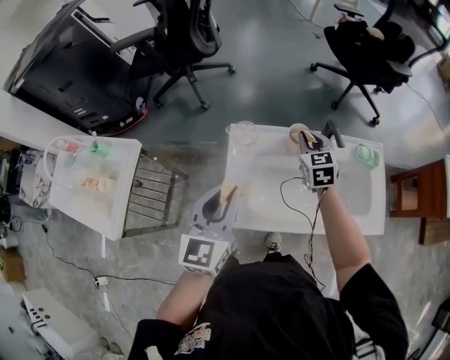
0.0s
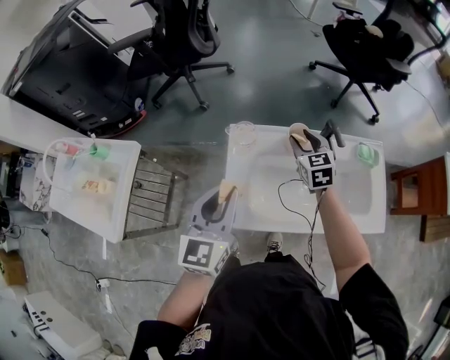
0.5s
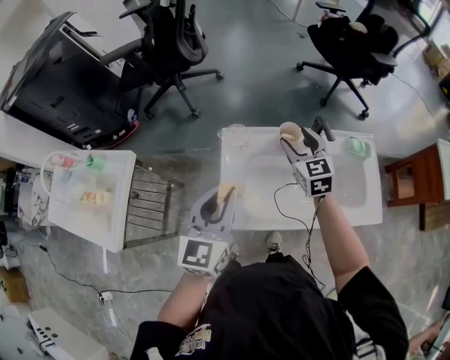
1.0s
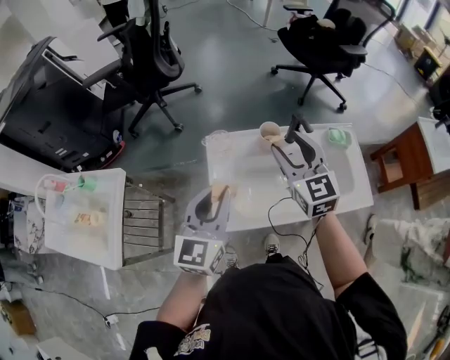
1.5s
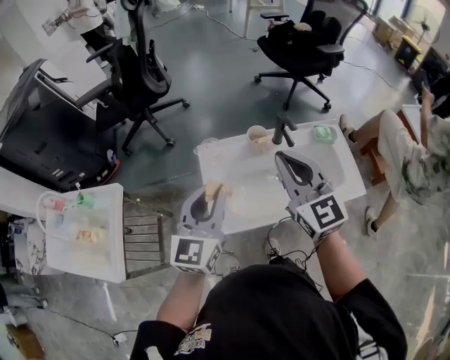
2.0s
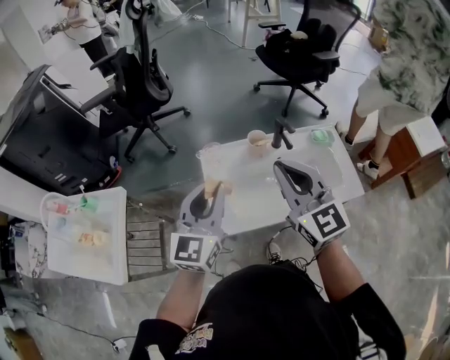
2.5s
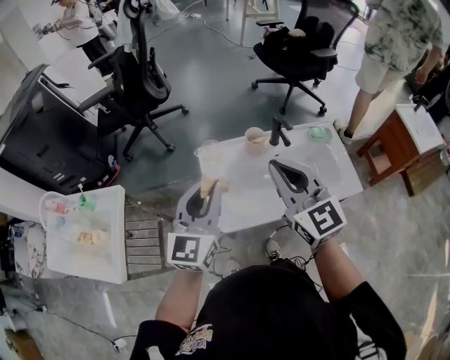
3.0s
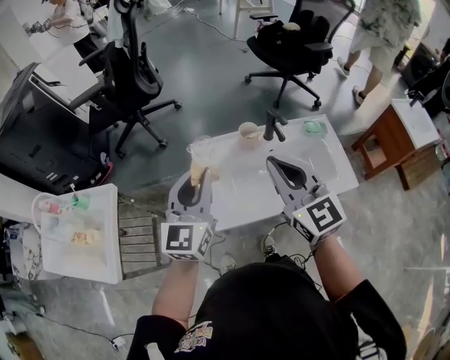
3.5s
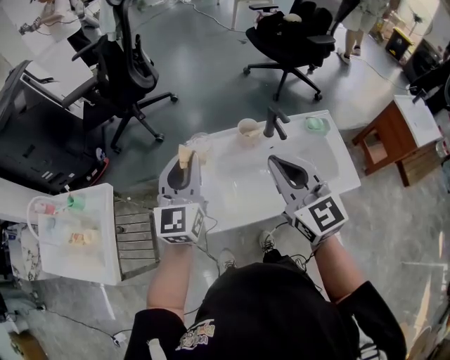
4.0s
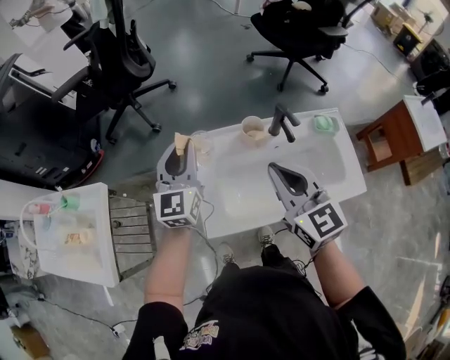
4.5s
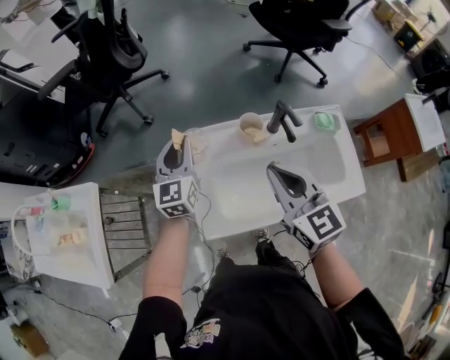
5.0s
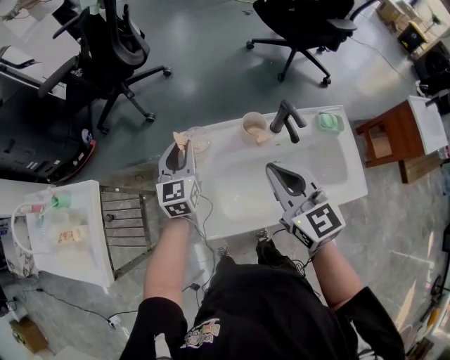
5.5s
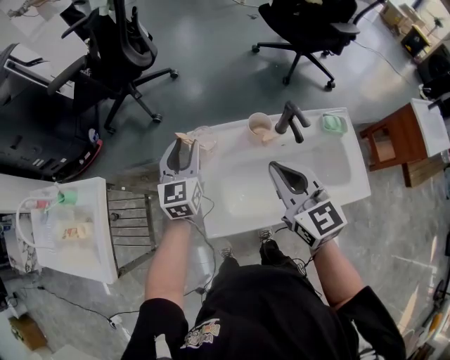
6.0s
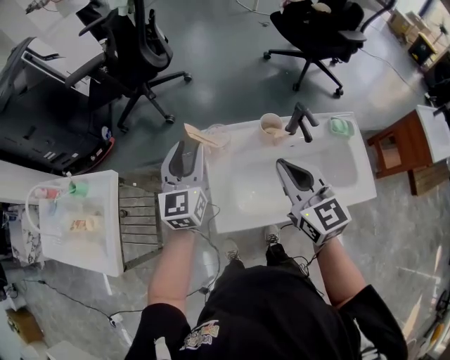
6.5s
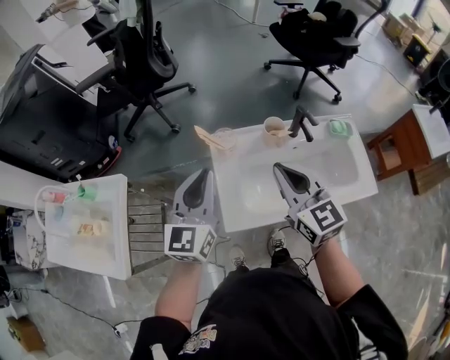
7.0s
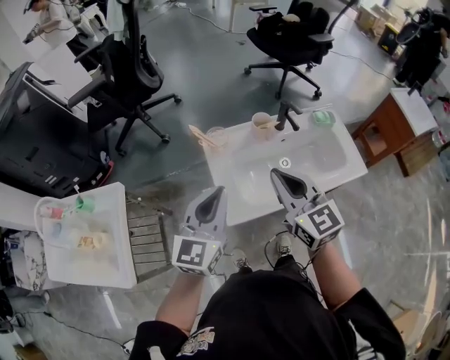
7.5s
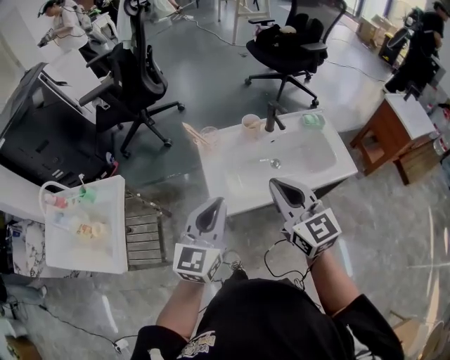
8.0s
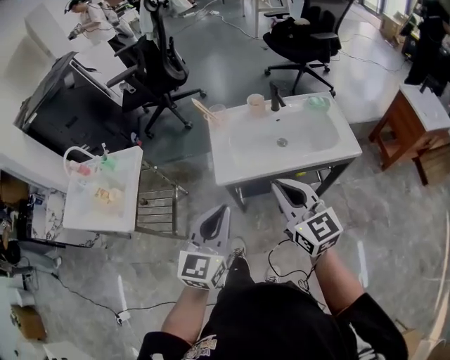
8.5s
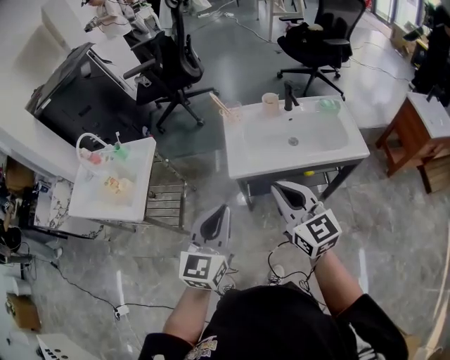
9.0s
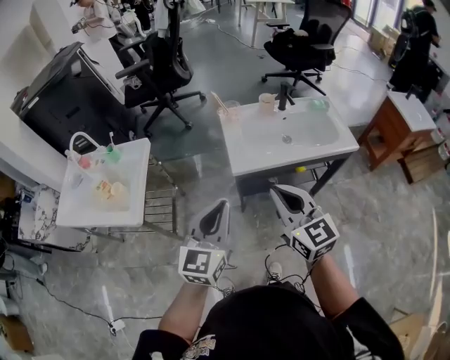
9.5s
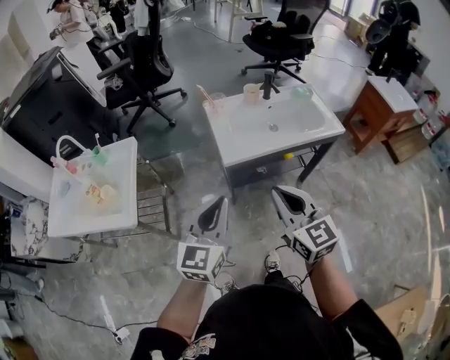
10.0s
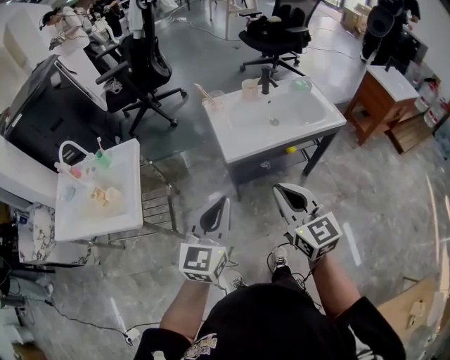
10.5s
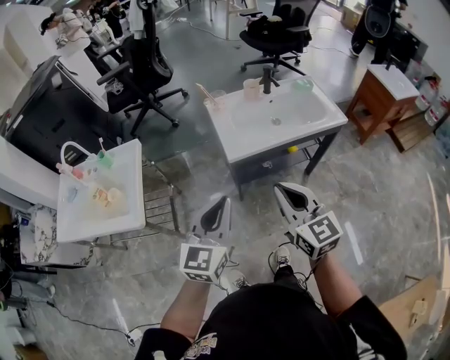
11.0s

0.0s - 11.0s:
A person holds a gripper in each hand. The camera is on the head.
0.0s - 2.0s: The right gripper shifts roughly 30 cm upward and backward, swivels approximately 30 degrees, and opens, then closes once more; the left gripper travels upward by some 5 cm.
2.0s - 3.5s: The grippers stay close to where they were, moving slightly.
3.5s - 5.5s: The right gripper heads downward and forward, covering about 15 cm. Meanwhile the left gripper is displaced downward and forward by some 30 cm, and swivels roughly 20 degrees.
5.5s - 7.5s: The left gripper heads backward and upward, covering roughly 30 cm, and swivels some 30 degrees. The right gripper is displaced backward, to the left and upward by roughly 15 cm.
7.5s - 9.0s: Both grippers travel together backward, about 25 cm.
9.0s - 11.0s: The right gripper shifts approximately 15 cm backward and to the left. The left gripper moves to the left and backward, approximately 10 cm.

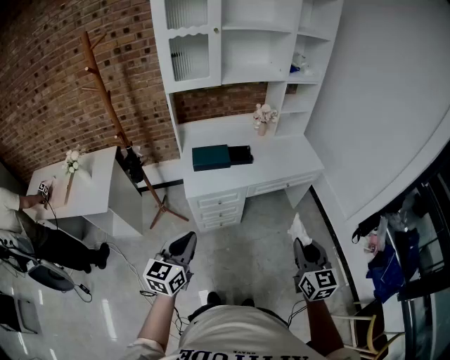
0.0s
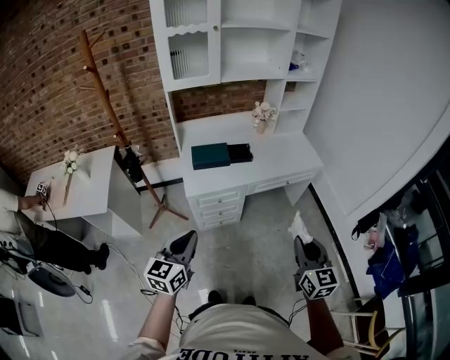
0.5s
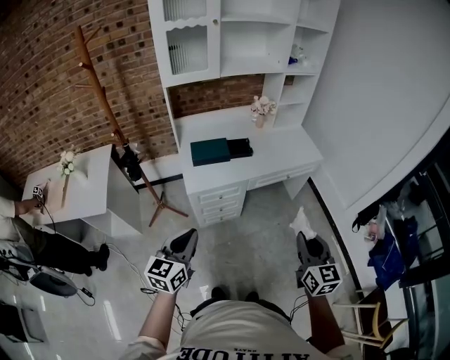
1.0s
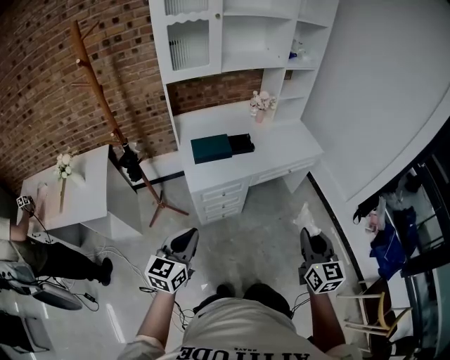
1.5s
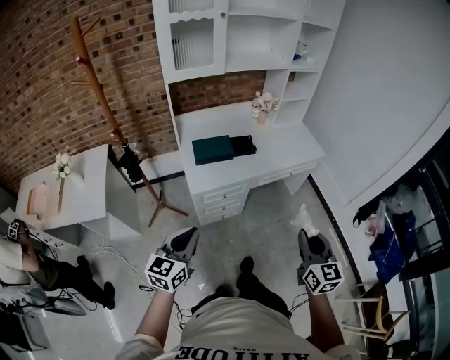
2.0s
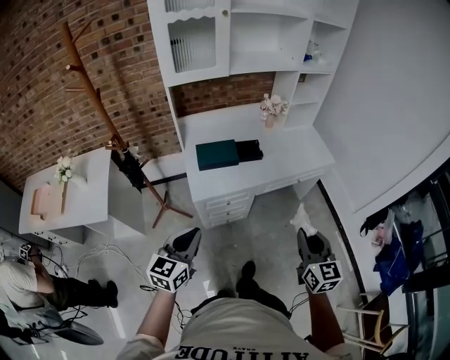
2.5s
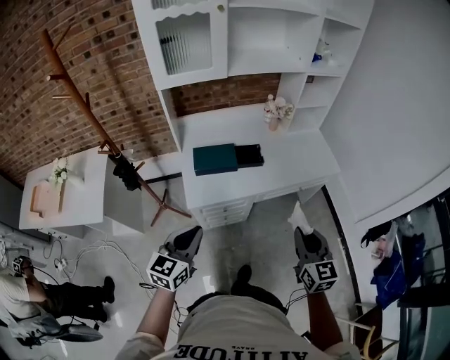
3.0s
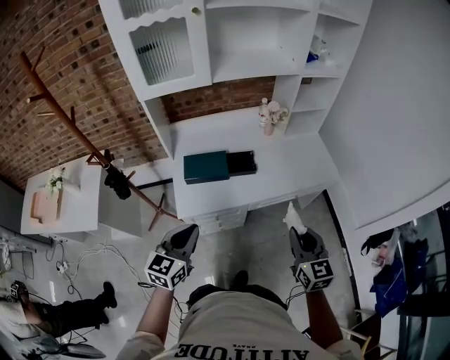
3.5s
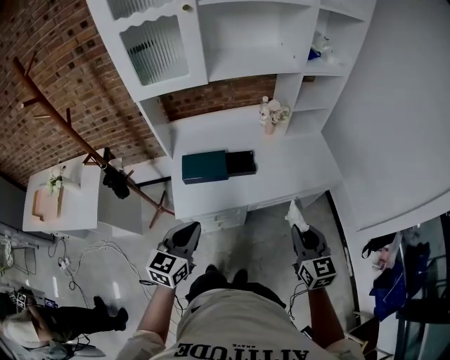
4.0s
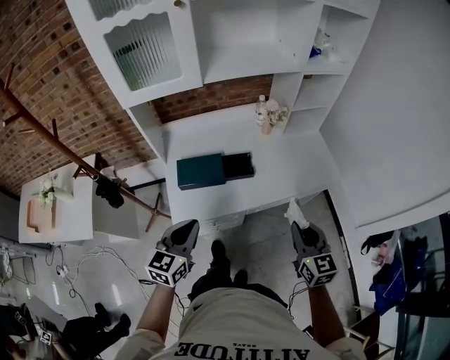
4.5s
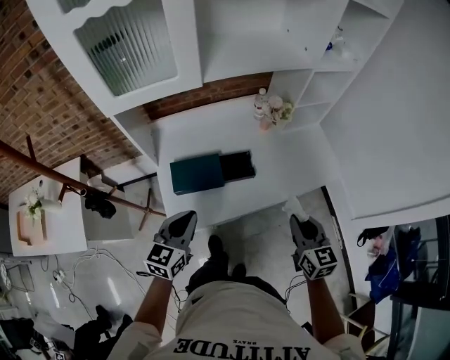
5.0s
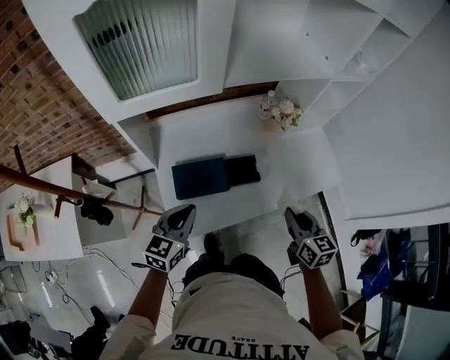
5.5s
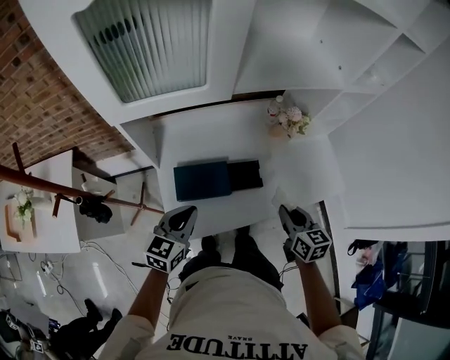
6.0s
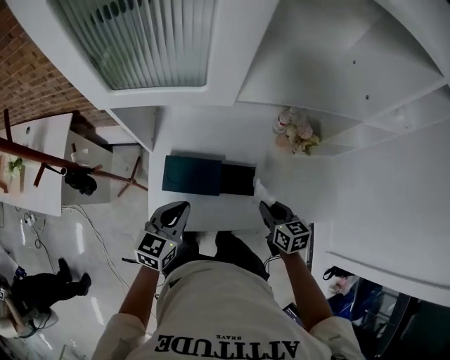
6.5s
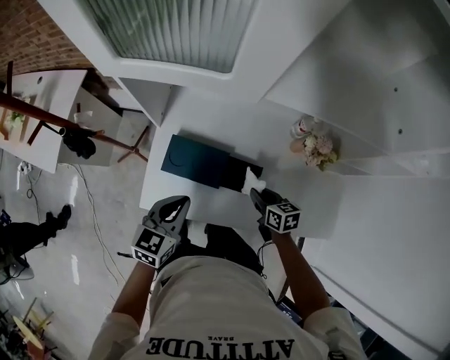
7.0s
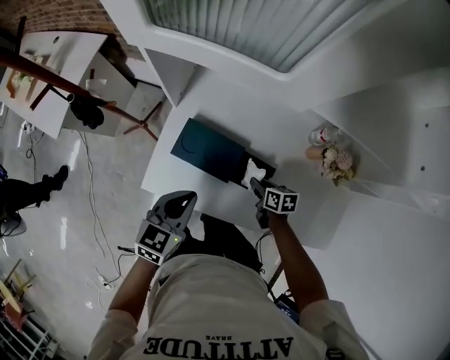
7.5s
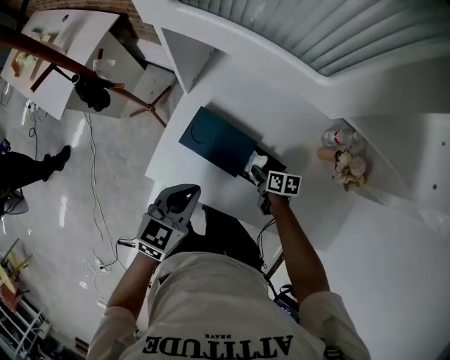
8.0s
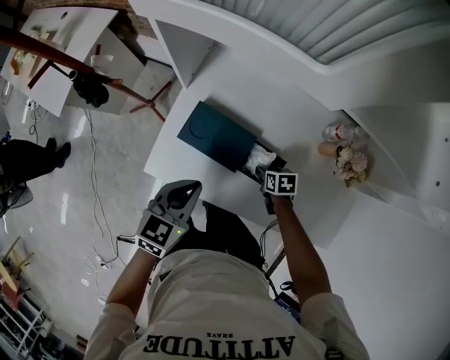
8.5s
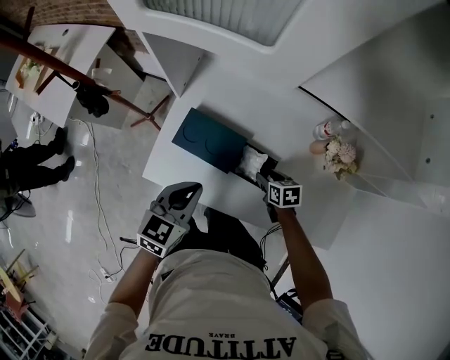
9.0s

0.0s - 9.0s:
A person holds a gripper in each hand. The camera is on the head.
0.0s - 2.0s: The two grippers go approximately 5 cm to the left.
2.0s - 4.5s: Both grippers travel together forward, some 30 cm.
4.5s - 7.0s: The right gripper ends up roughly 40 cm from where it was, and swivels about 50 degrees. Meanwhile the left gripper ends up about 20 cm from where it was.
7.0s - 9.0s: The right gripper goes roughly 10 cm downward, and opens its fingers.

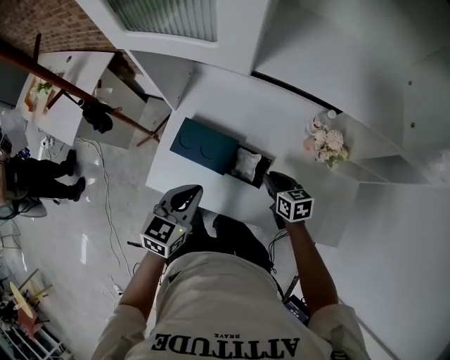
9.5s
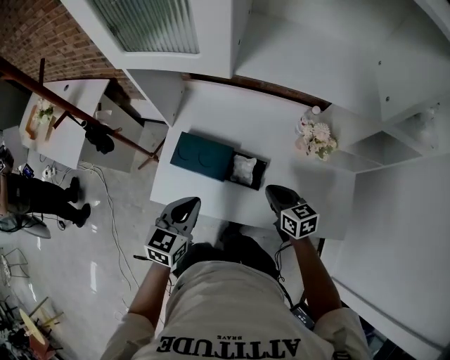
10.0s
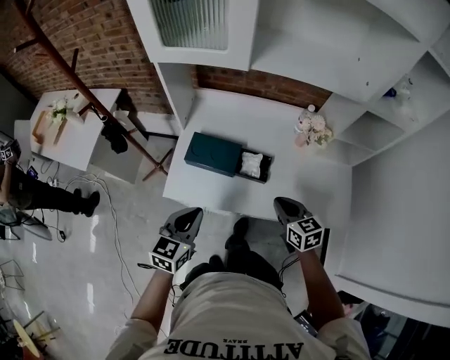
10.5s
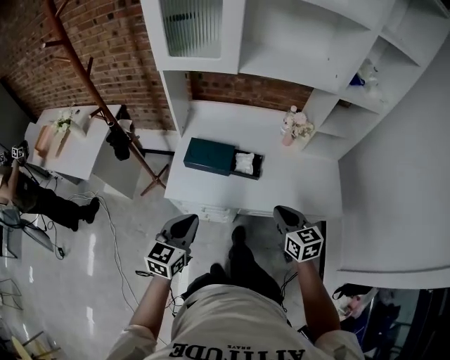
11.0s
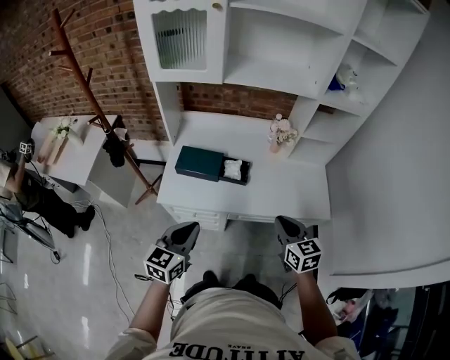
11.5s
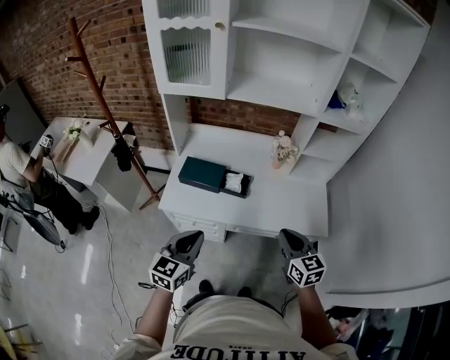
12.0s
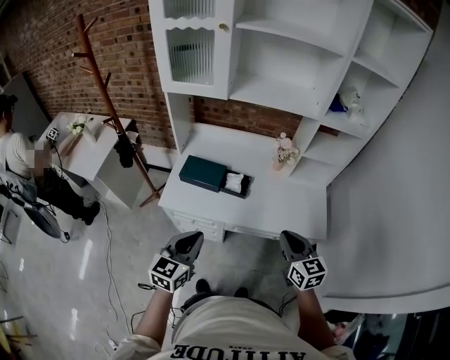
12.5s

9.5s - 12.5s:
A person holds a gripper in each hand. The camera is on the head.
9.5s - 11.0s: The left gripper shifts approximately 20 cm backward. The right gripper heads backward and upward, covering approximately 30 cm, and changes its angle by some 20 degrees.
11.0s - 12.5s: The right gripper heads to the right, upward and backward, covering roughly 15 cm. Meanwhile the left gripper travels to the right and upward by approximately 10 cm.

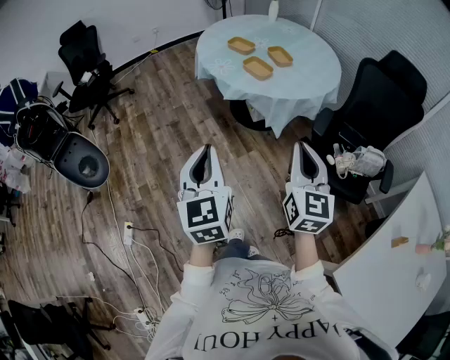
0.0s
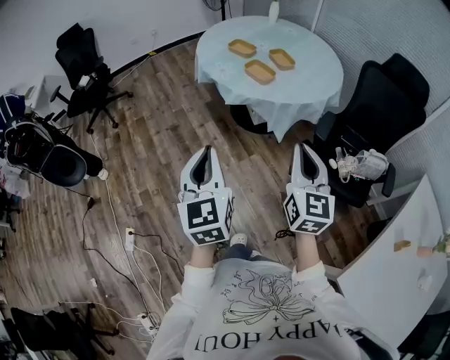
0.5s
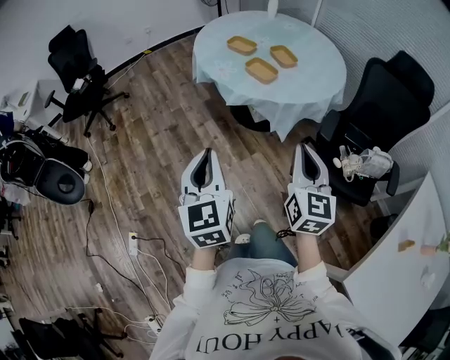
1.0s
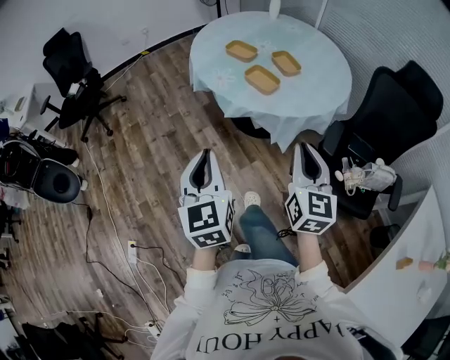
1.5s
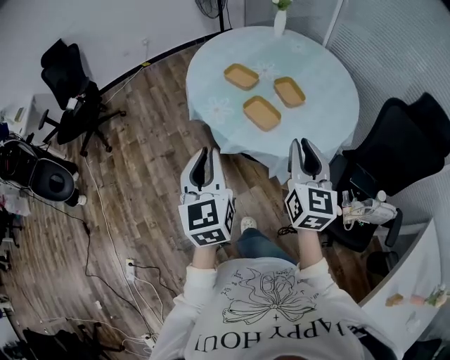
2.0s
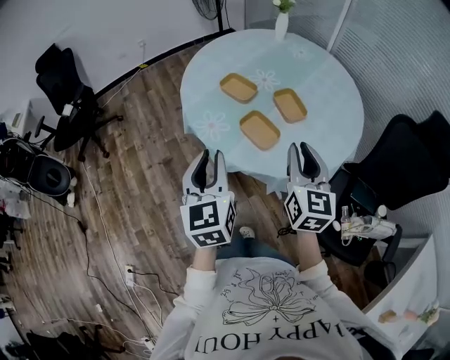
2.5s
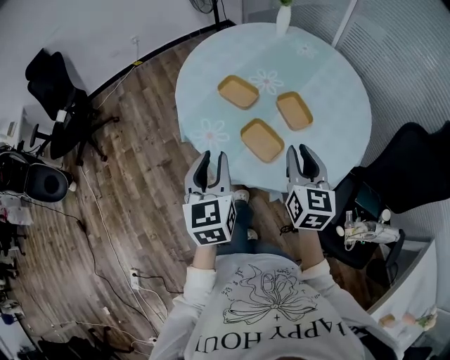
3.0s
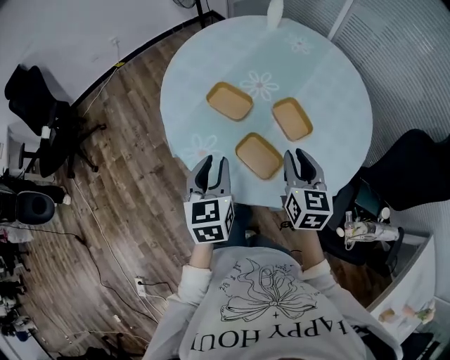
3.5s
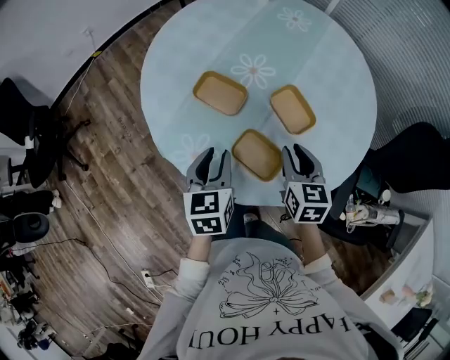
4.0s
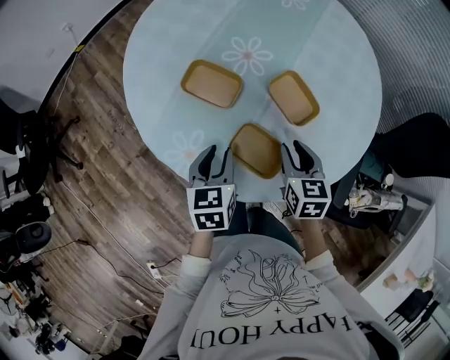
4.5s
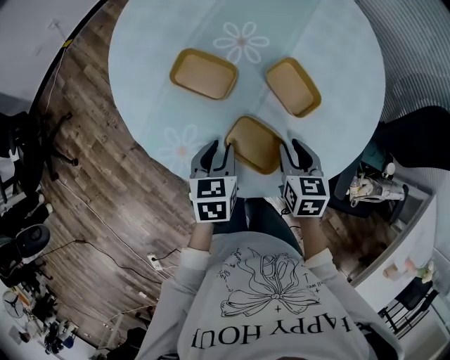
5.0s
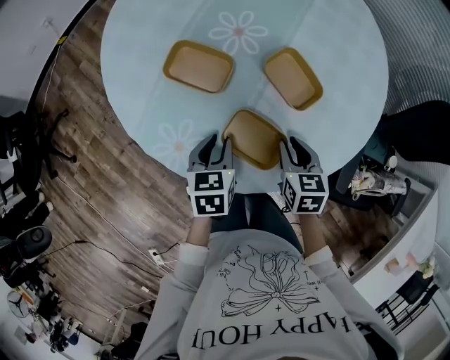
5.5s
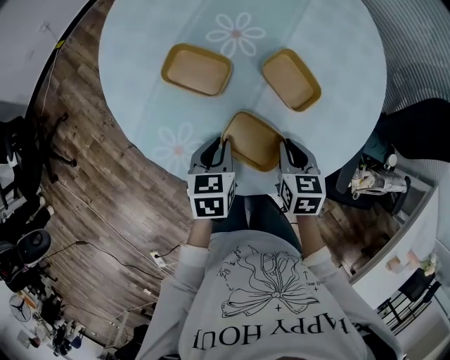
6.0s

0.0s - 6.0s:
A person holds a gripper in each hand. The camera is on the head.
0.0s - 2.0s: Both grippers travel together forward, about 35 cm.
2.0s - 4.0s: Both grippers move forward and downward, about 40 cm. The right gripper rotates some 30 degrees, while the left gripper rotates approximately 30 degrees.
4.0s - 6.0s: Both grippers travel together downward, approximately 15 cm. The left gripper turns by roughly 20 degrees.
